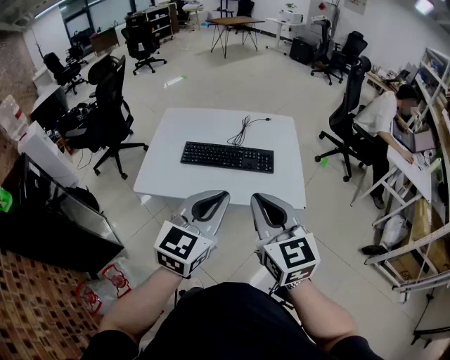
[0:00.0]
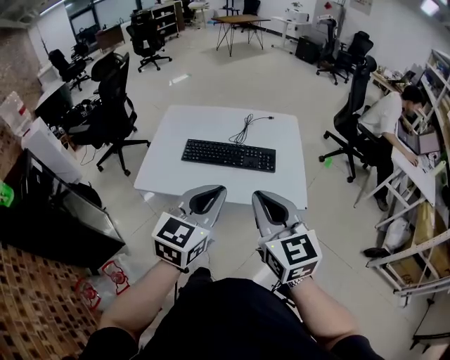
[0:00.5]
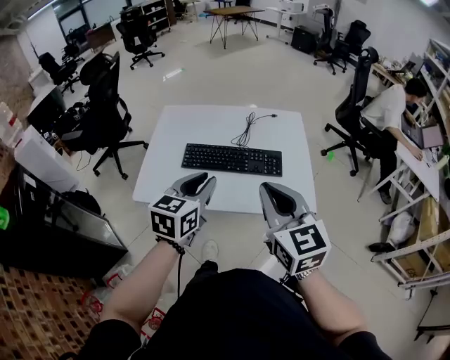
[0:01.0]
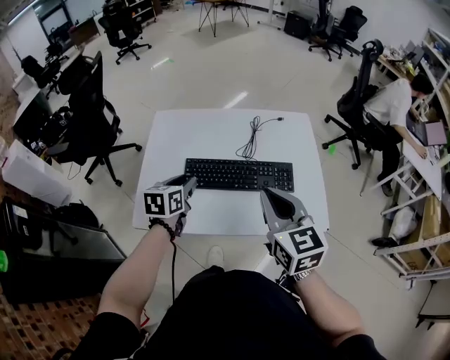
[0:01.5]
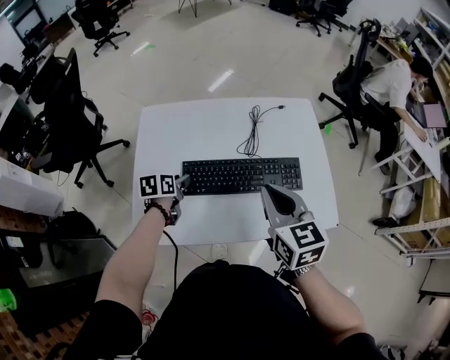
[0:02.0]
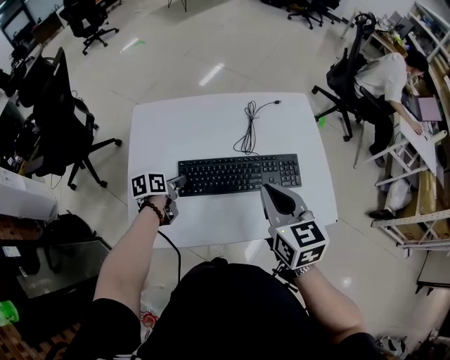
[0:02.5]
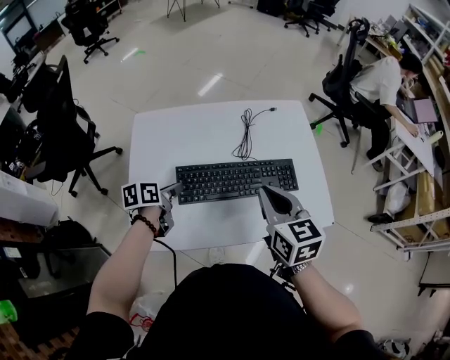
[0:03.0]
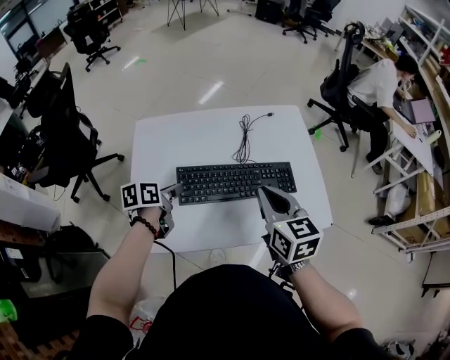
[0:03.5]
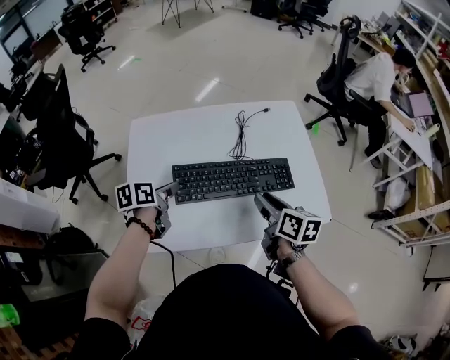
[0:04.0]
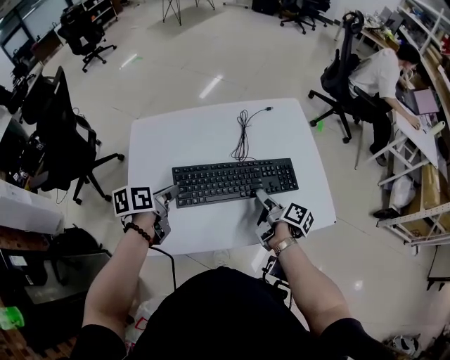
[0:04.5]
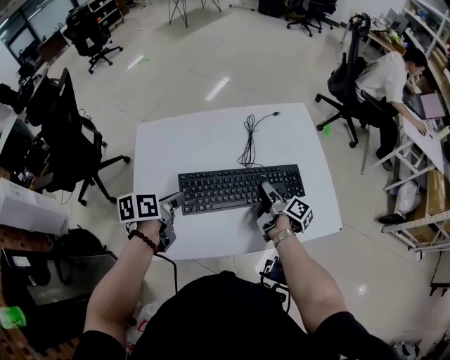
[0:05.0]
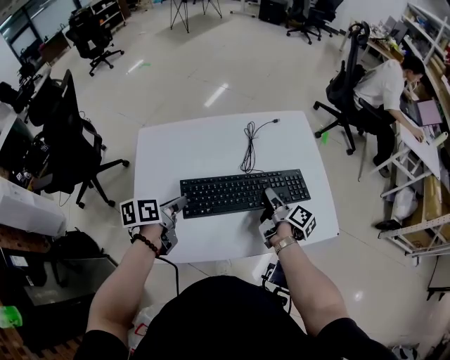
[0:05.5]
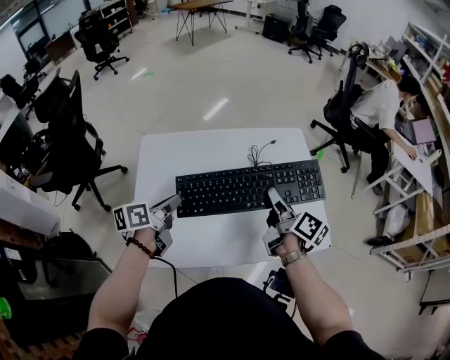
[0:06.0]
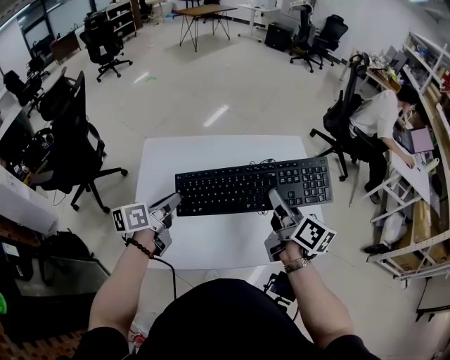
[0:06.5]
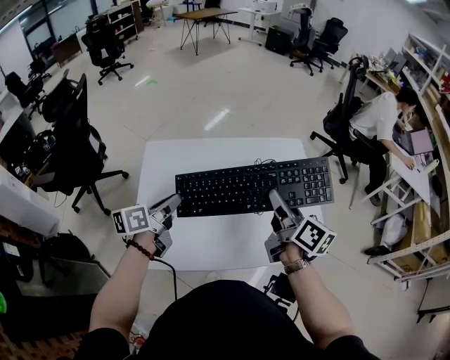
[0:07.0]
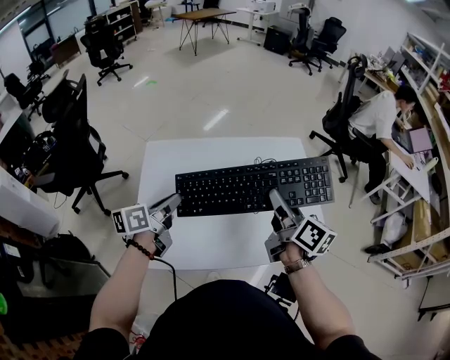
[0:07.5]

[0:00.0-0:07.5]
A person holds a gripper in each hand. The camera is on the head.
0:00.0 to 0:02.0: The right gripper heads forward and downward, covering roughly 30 cm, and rotates approximately 20 degrees. The left gripper is displaced forward, downward and to the left by roughly 50 cm, angles its fingers downward, by roughly 40 degrees, and opens its fingers.
0:02.0 to 0:04.0: The right gripper goes approximately 10 cm downward, turns by some 40 degrees, and opens. Meanwhile the left gripper heads upward, covering roughly 5 cm.
0:04.0 to 0:05.5: The right gripper goes approximately 10 cm downward and forward, rotates some 40 degrees, and opens and closes again.
0:05.5 to 0:07.5: The left gripper shifts approximately 10 cm upward, and changes its angle by some 20 degrees, while the right gripper moves upward, about 20 cm, and turns by approximately 40 degrees.

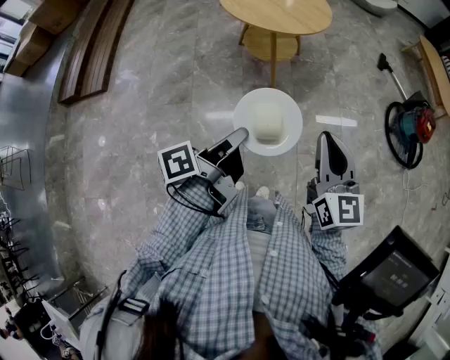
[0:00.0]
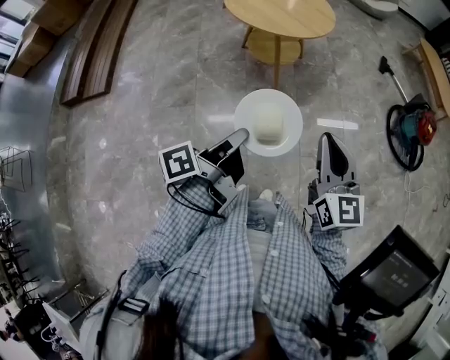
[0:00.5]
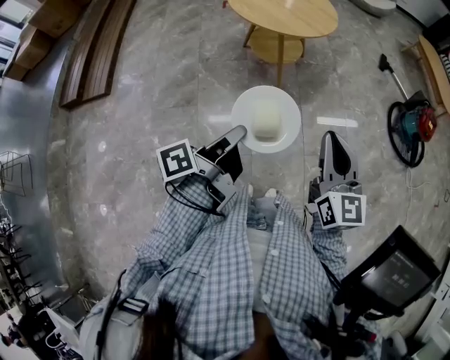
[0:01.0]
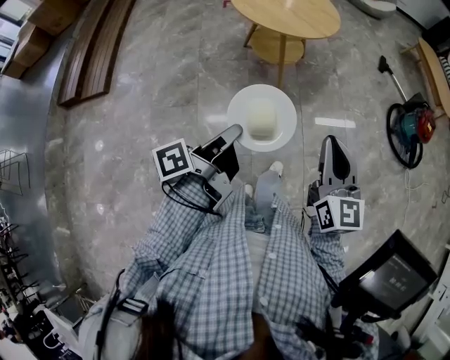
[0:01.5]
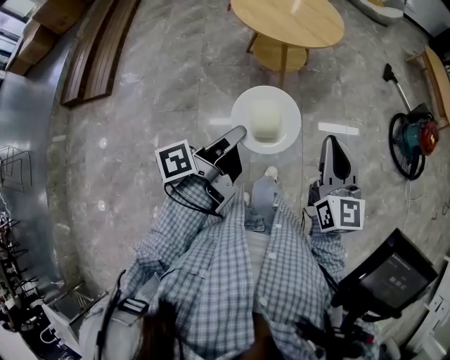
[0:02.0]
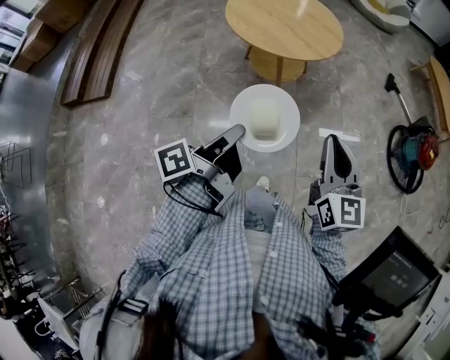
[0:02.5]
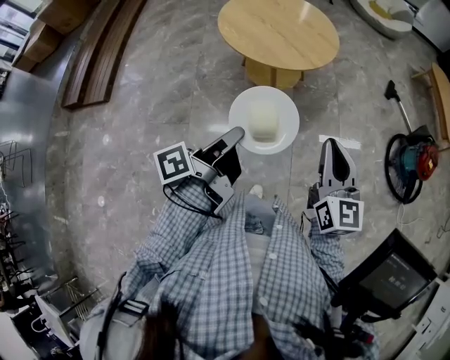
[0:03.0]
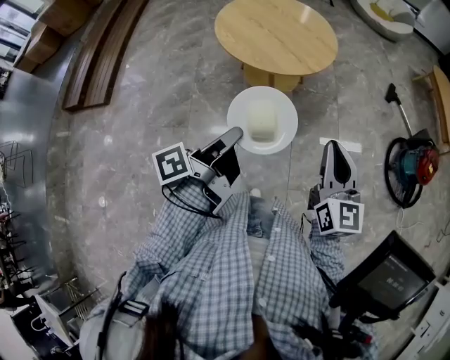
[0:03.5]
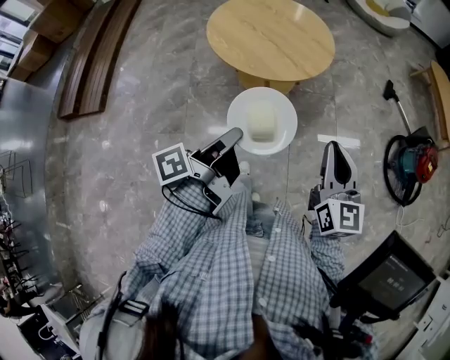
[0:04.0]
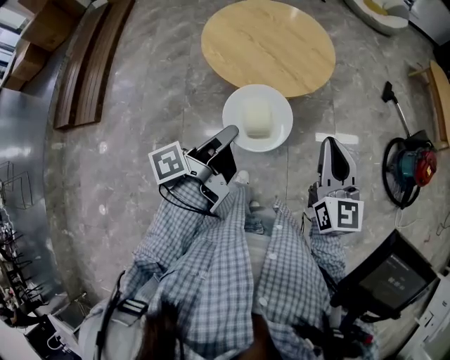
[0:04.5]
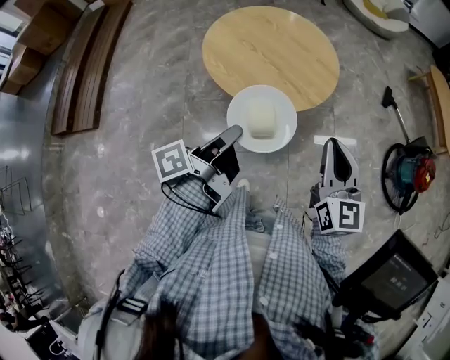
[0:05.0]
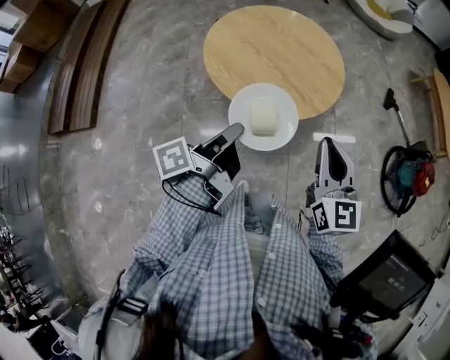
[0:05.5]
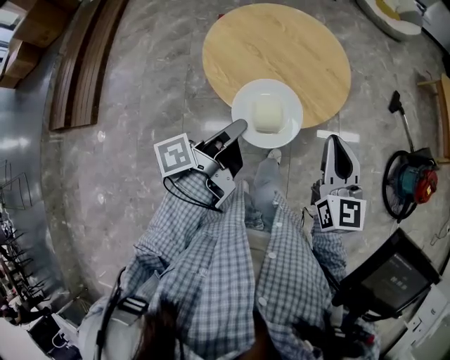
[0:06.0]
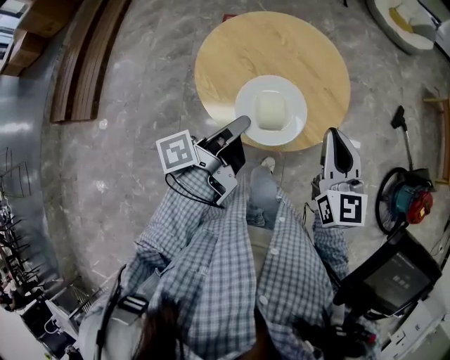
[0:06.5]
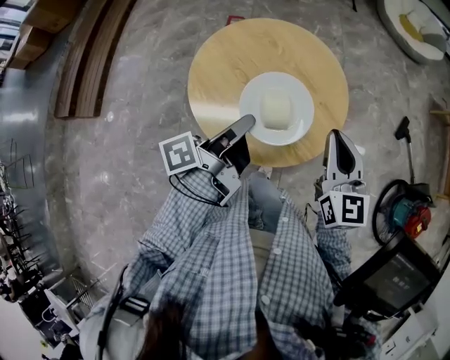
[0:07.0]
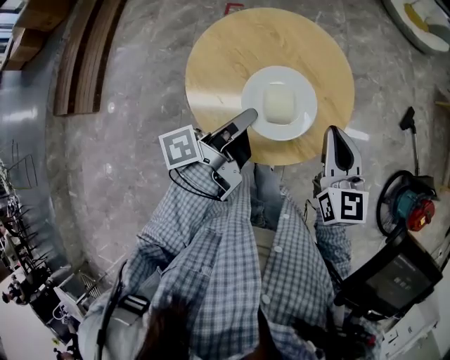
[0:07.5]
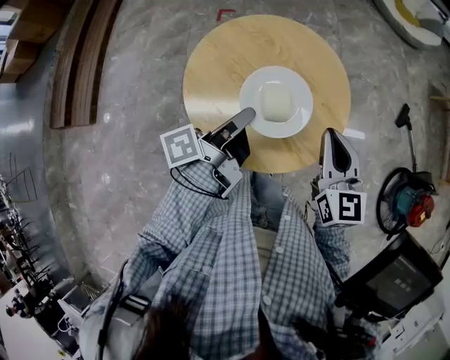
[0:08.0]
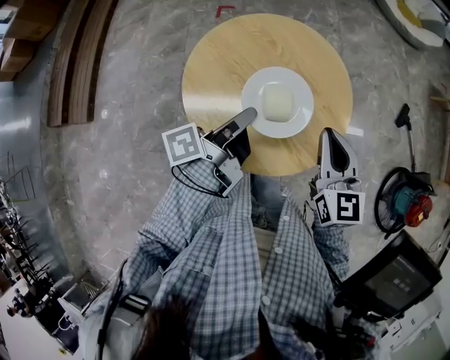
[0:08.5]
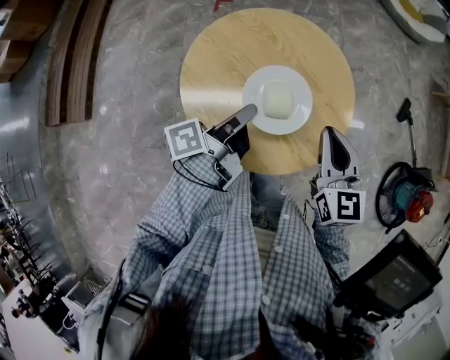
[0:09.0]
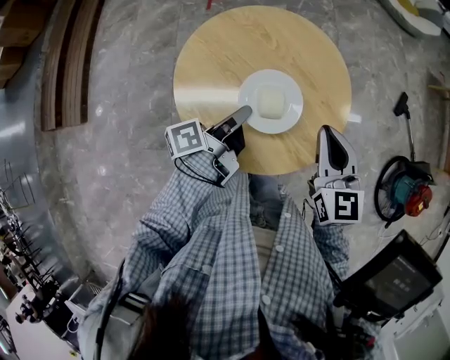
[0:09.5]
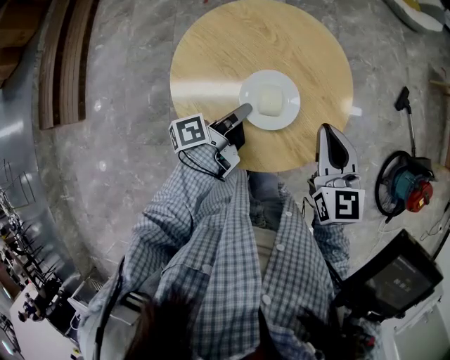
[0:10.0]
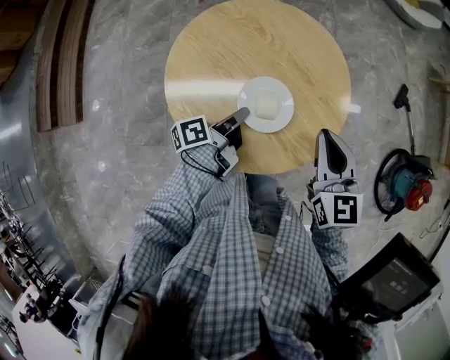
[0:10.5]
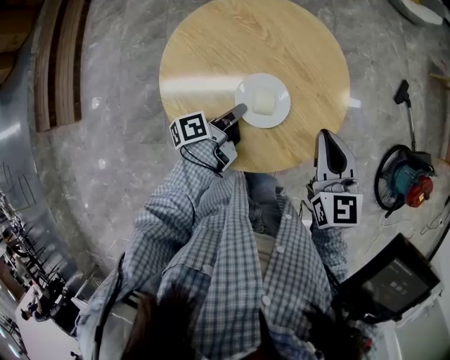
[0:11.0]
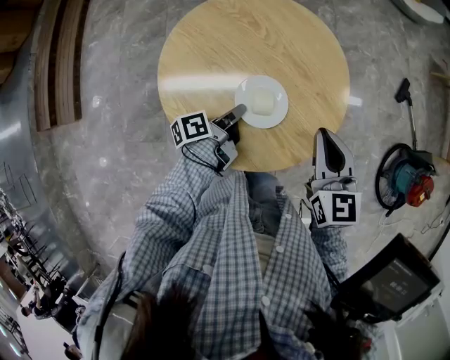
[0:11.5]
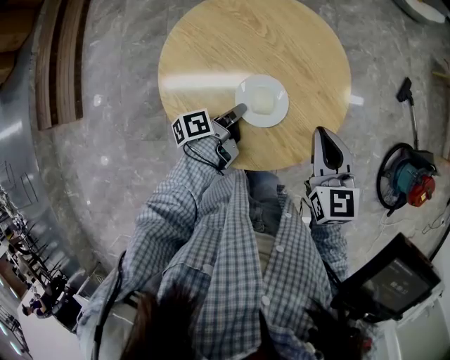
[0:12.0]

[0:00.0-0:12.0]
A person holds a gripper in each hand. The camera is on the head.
0:06.0 to 0:08.0: The right gripper shifts by roughly 5 cm.
0:10.0 to 0:12.0: The right gripper shifts by approximately 5 cm.

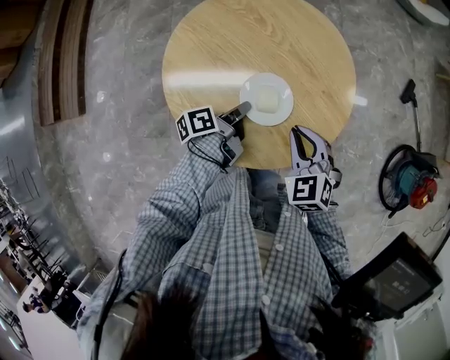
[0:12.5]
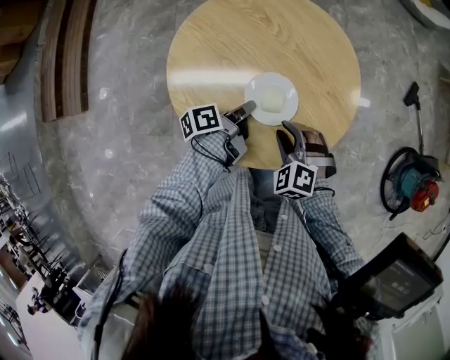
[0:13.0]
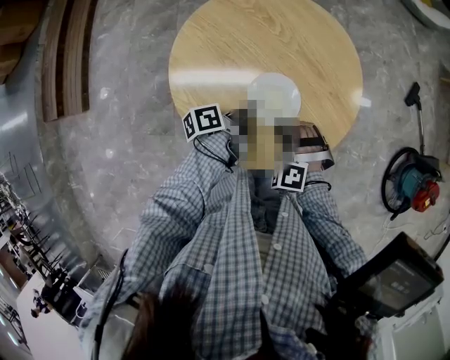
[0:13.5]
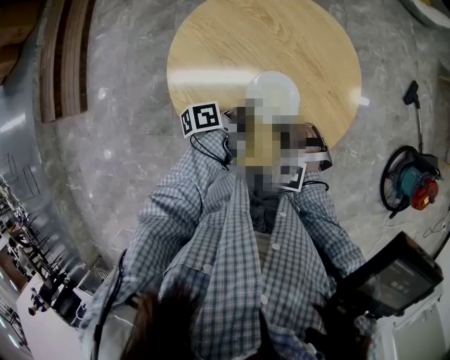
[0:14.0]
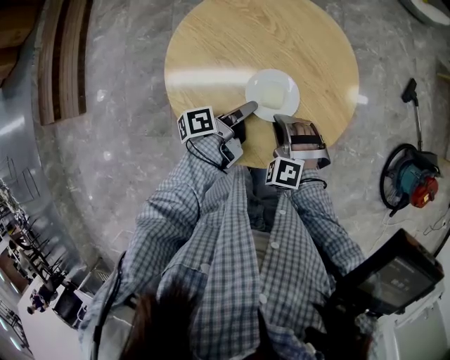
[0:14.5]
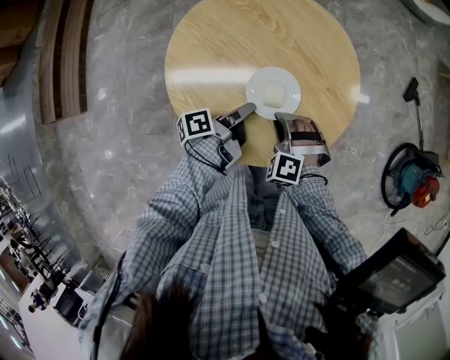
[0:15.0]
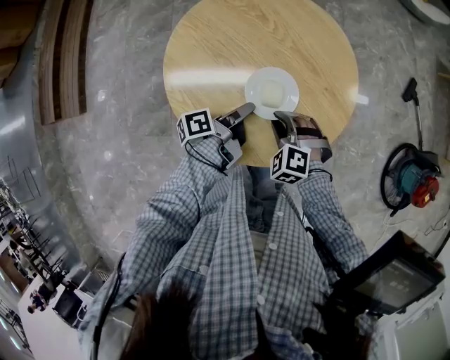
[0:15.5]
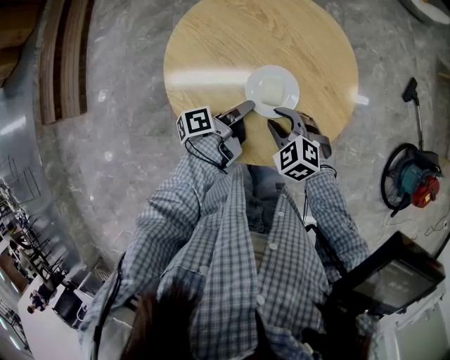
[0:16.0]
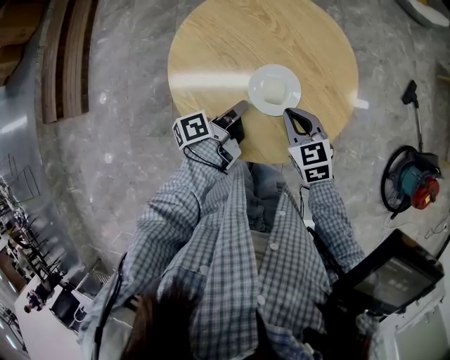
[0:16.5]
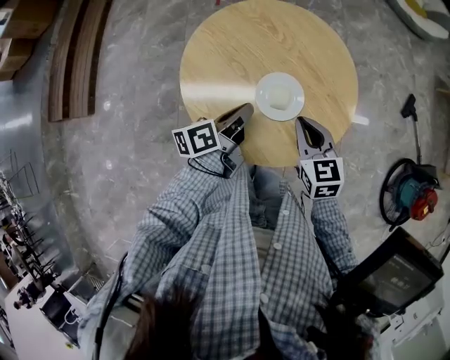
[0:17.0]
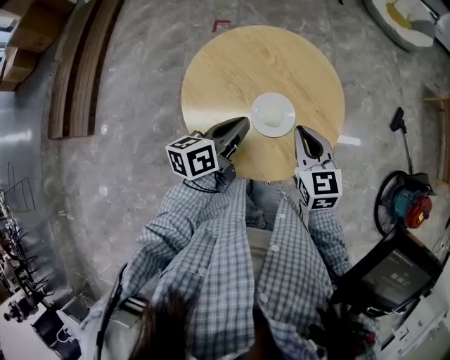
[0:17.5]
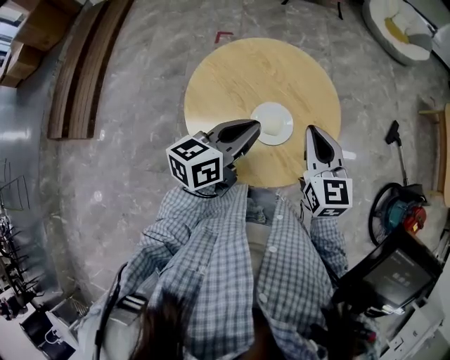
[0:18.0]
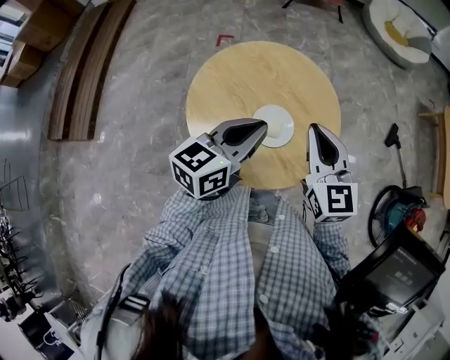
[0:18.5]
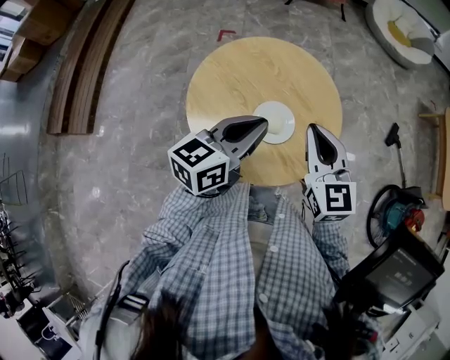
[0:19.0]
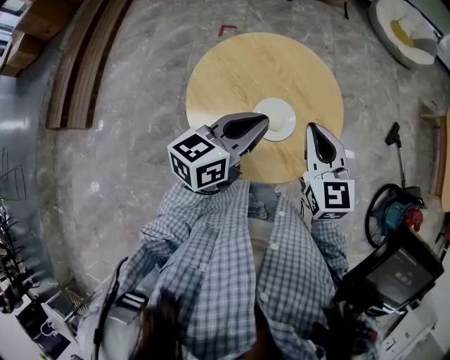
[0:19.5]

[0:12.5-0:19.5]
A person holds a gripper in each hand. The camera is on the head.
0:12.5 to 0:14.5: The right gripper heads downward, covering roughly 5 cm, and twists roughly 40 degrees counterclockwise, seen from behind.
0:14.5 to 0:16.0: The right gripper swivels about 30 degrees.
0:16.0 to 0:17.5: The right gripper is displaced upward by roughly 15 cm, turns by approximately 50 degrees, and closes its fingers.
0:17.5 to 0:19.5: The right gripper heads upward, covering about 10 cm.
